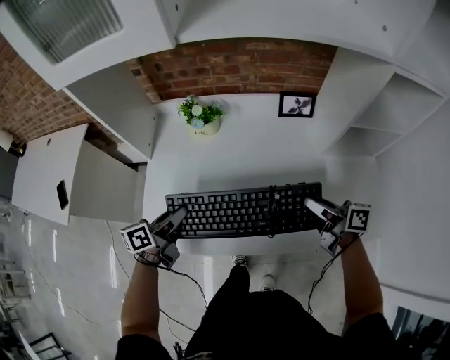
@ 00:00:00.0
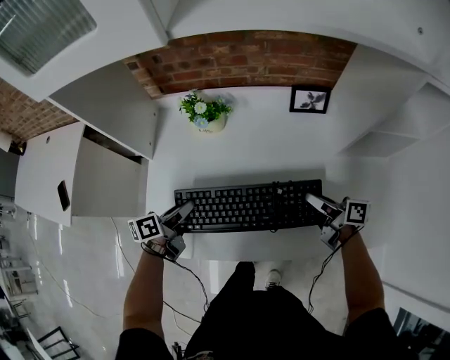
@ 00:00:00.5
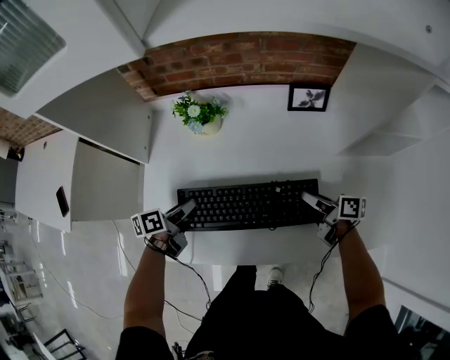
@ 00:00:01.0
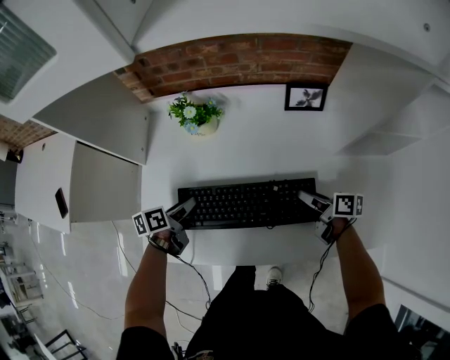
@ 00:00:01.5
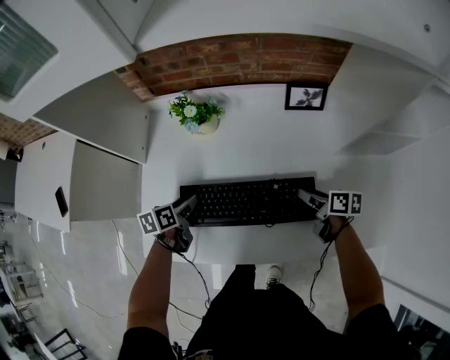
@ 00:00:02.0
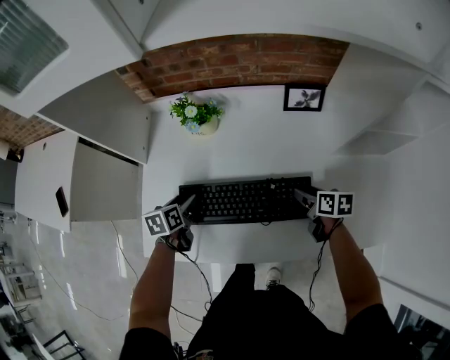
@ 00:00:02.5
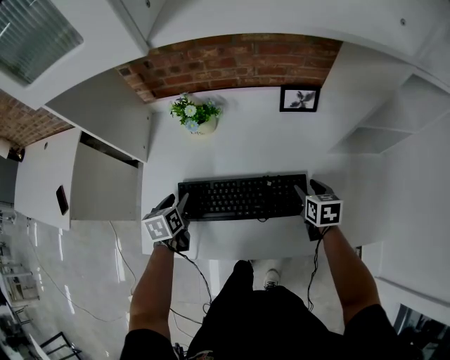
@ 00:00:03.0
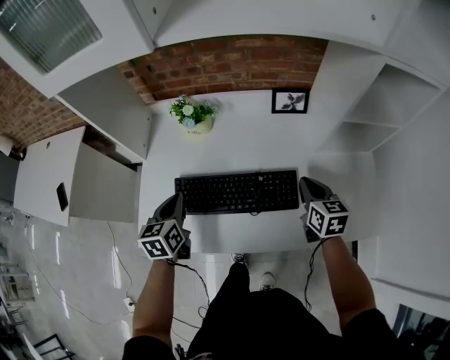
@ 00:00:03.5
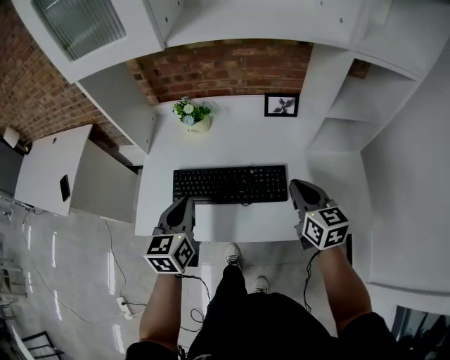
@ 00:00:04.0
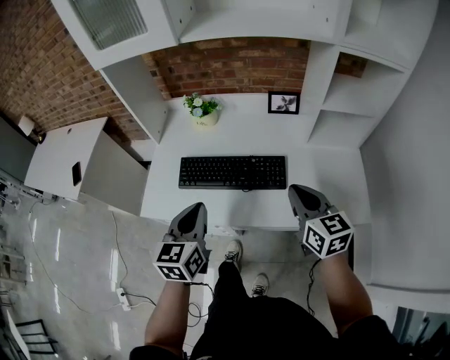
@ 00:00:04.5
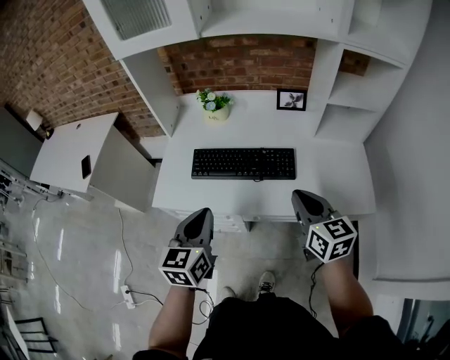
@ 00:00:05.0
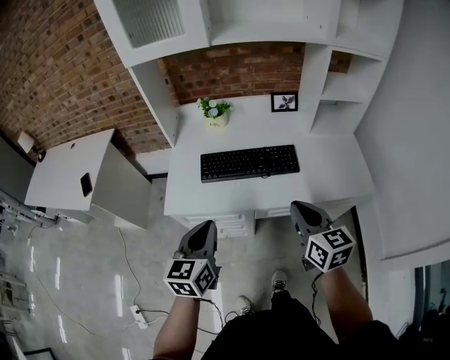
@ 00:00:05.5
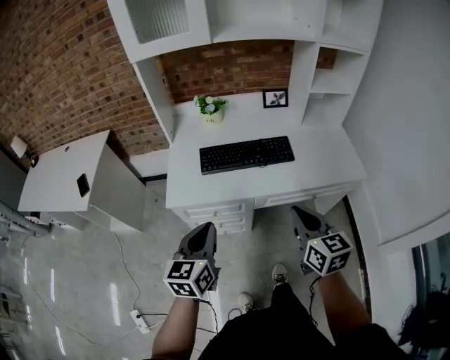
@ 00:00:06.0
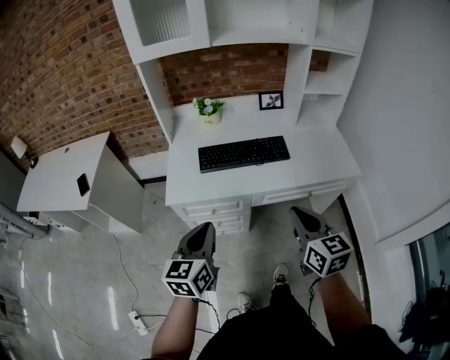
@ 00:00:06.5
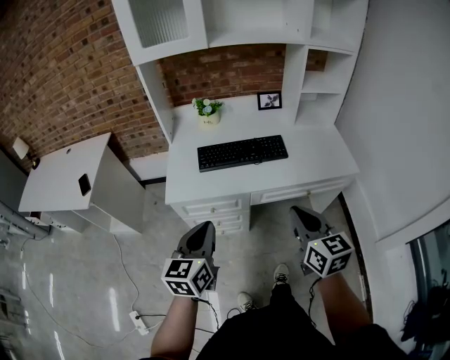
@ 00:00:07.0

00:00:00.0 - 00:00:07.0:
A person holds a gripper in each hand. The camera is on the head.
00:00:00.0 - 00:00:02.0: The grippers both shift downward and forward by about 15 cm. The left gripper angles its fingers downward, by about 30 degrees. Meanwhile the right gripper changes its angle by approximately 30 degrees.
00:00:02.0 - 00:00:03.5: Both grippers travel together upward, approximately 10 cm. The left gripper rotates approximately 30 degrees, and closes. Meanwhile the right gripper turns by about 40 degrees, and closes up.
00:00:03.5 - 00:00:05.0: The two grippers go about 25 cm backward and upward.
00:00:05.0 - 00:00:07.0: Both grippers move backward and to the left, approximately 20 cm.

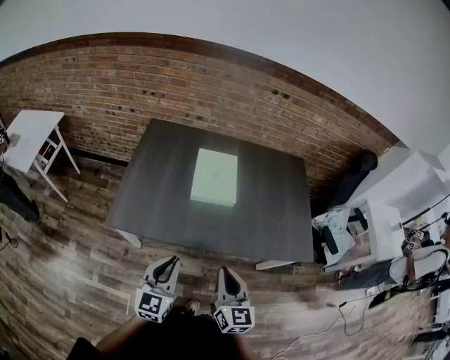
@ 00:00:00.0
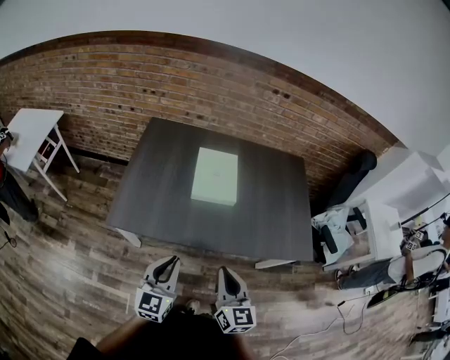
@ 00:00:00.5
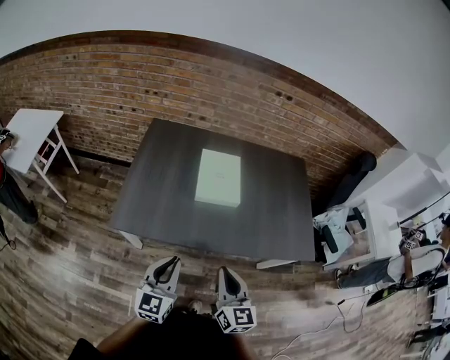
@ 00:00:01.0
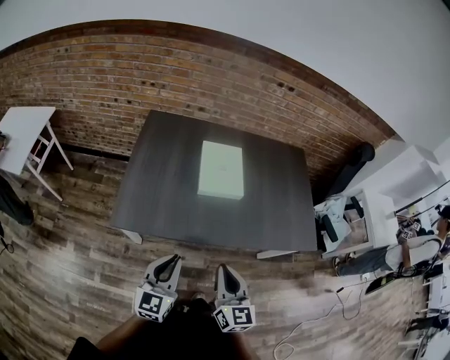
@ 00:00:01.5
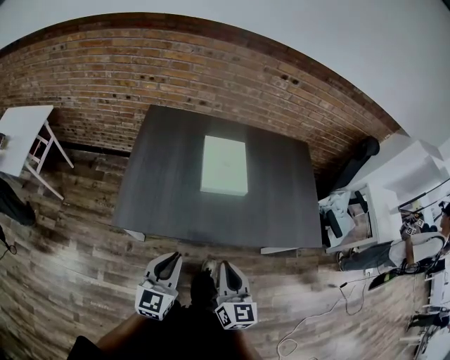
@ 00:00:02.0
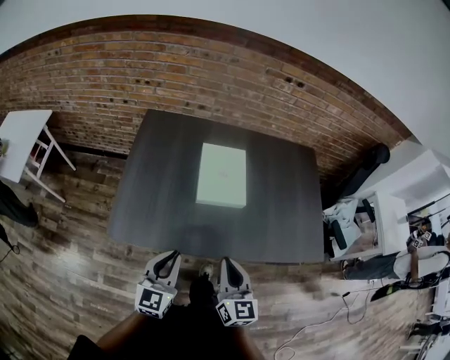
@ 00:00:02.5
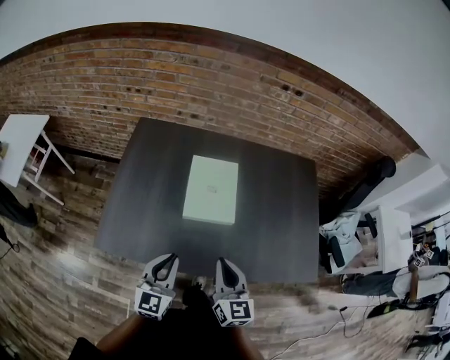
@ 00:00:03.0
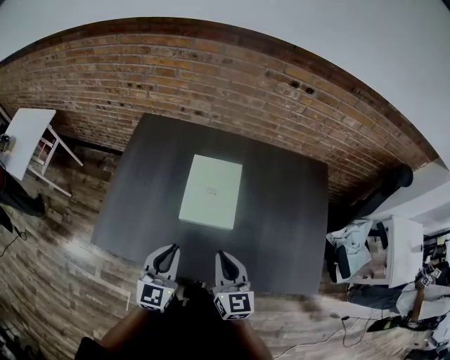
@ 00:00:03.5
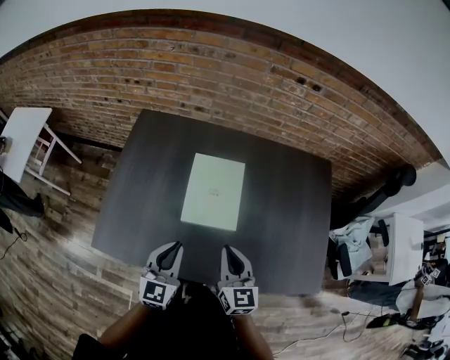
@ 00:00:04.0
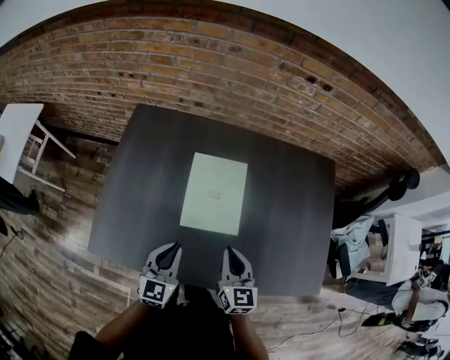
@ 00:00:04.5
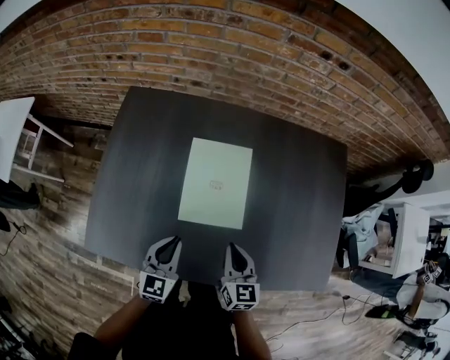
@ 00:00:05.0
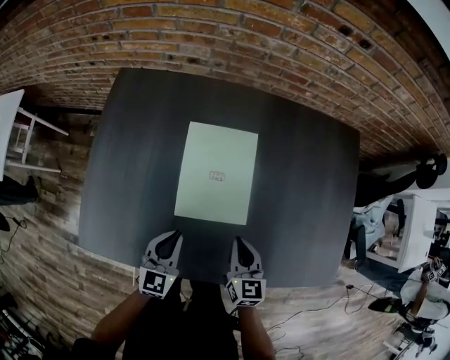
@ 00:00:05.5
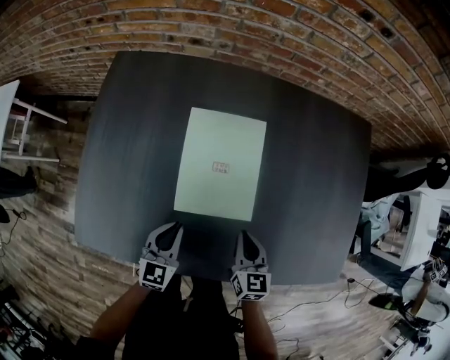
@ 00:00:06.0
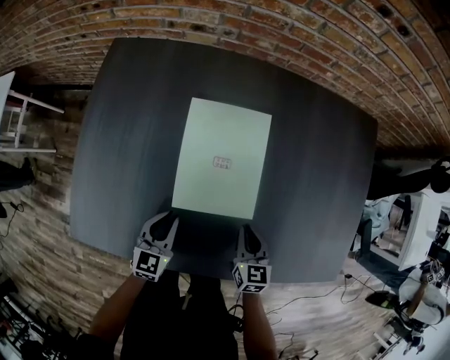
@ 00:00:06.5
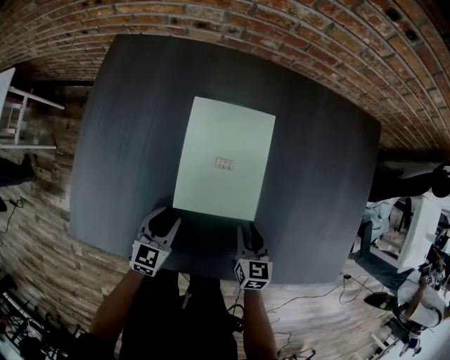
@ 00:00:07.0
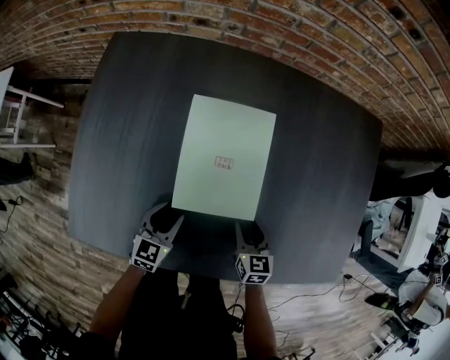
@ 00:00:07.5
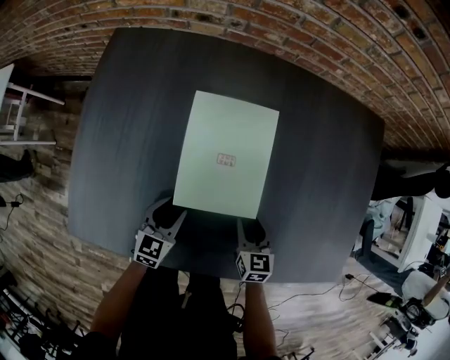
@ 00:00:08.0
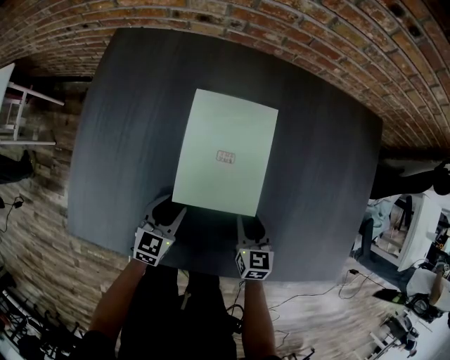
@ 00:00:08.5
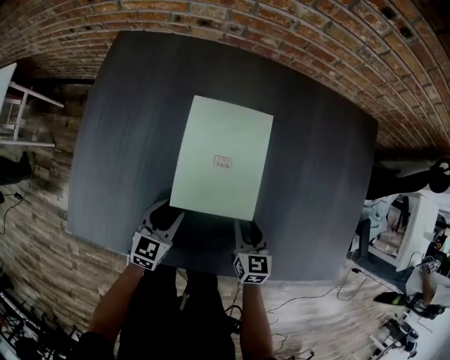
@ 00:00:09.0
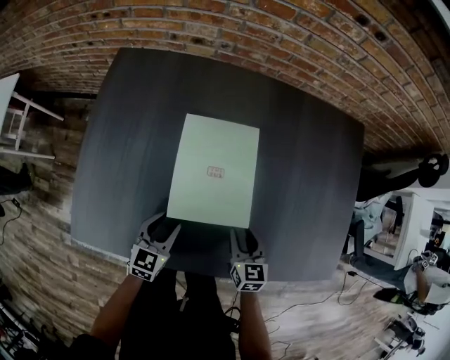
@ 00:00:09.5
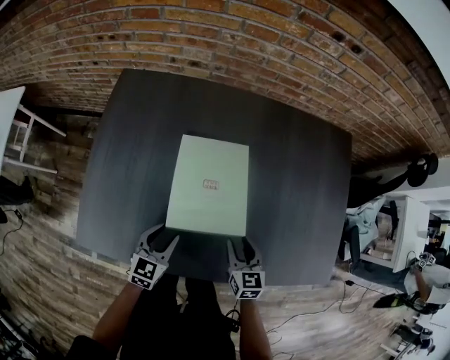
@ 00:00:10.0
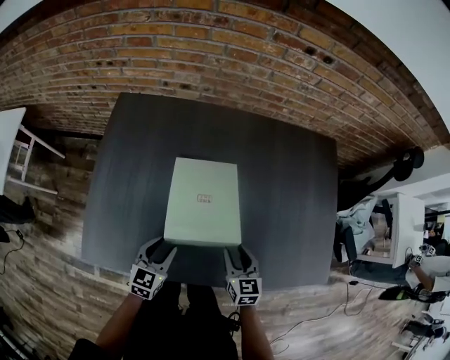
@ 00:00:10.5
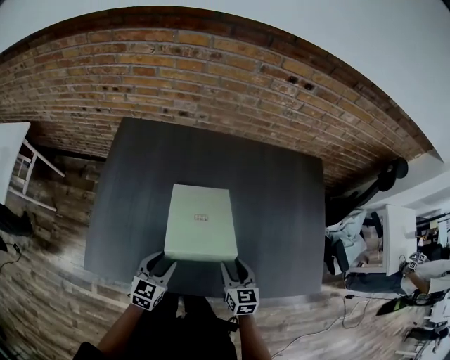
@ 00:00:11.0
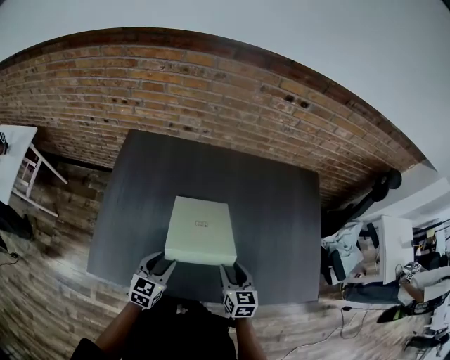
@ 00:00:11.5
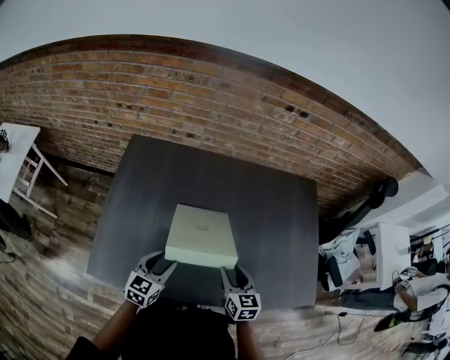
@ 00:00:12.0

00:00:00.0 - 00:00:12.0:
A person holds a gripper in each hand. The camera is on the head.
00:00:00.0 - 00:00:02.0: Both grippers travel together to the left, about 10 cm.
00:00:02.0 - 00:00:04.0: Both grippers move forward and to the right, roughly 30 cm.
00:00:04.0 - 00:00:06.0: Both grippers travel together downward, some 20 cm.
00:00:06.0 - 00:00:08.0: The two grippers go about 10 cm downward. The right gripper opens its fingers, while the left gripper opens.
00:00:08.0 - 00:00:10.0: The left gripper is displaced upward and backward by about 10 cm. Meanwhile the right gripper heads upward, covering roughly 10 cm.
00:00:10.0 - 00:00:12.0: Both grippers travel together upward, approximately 15 cm.

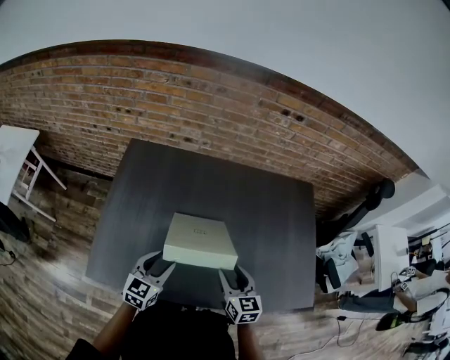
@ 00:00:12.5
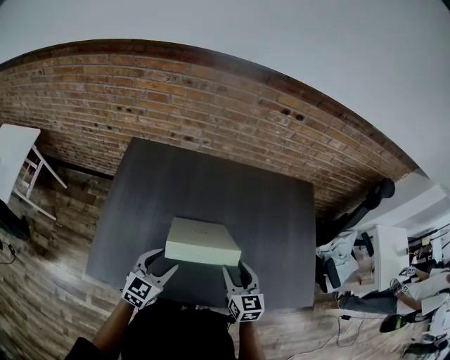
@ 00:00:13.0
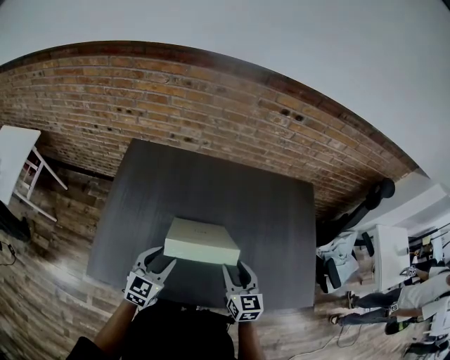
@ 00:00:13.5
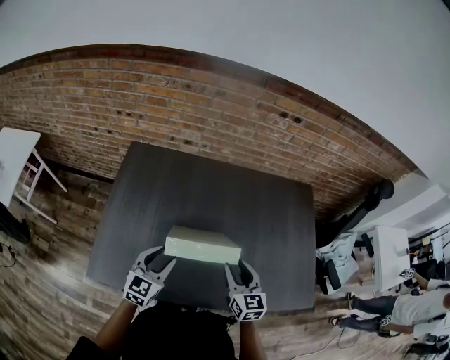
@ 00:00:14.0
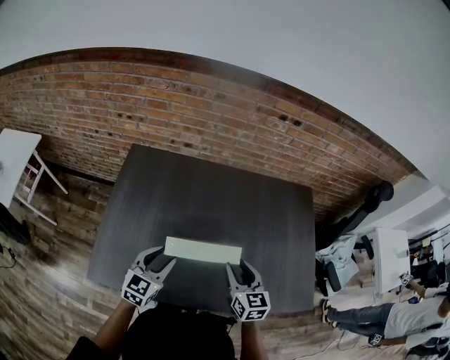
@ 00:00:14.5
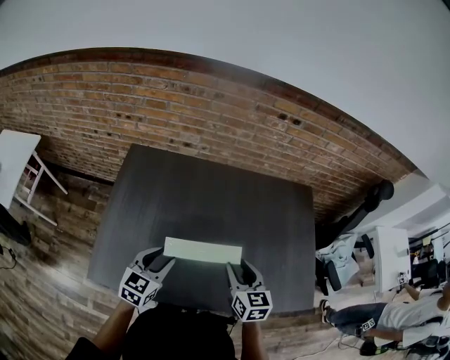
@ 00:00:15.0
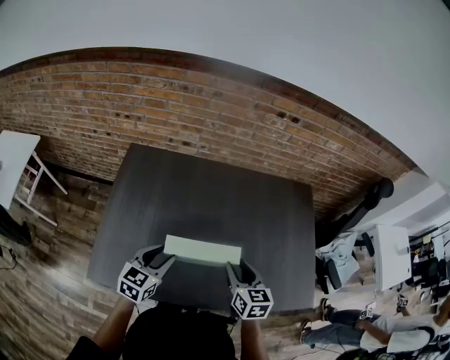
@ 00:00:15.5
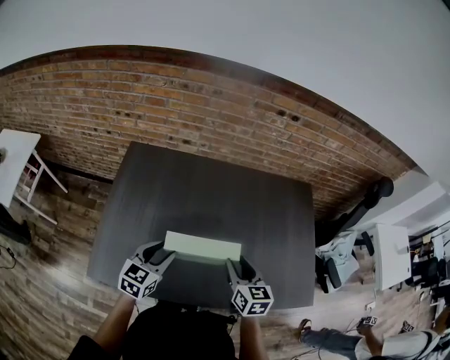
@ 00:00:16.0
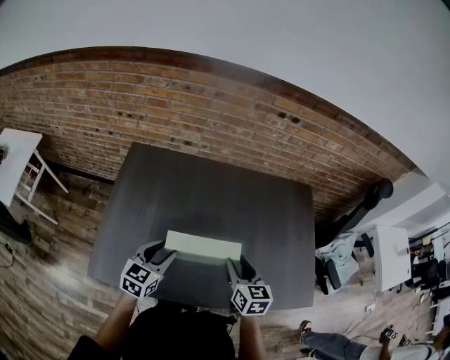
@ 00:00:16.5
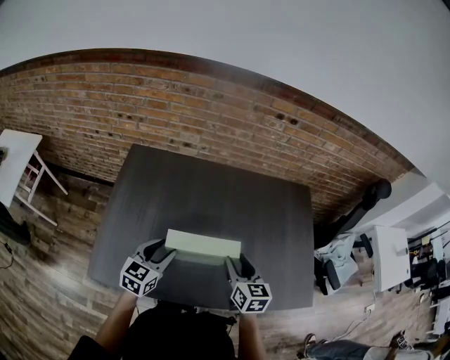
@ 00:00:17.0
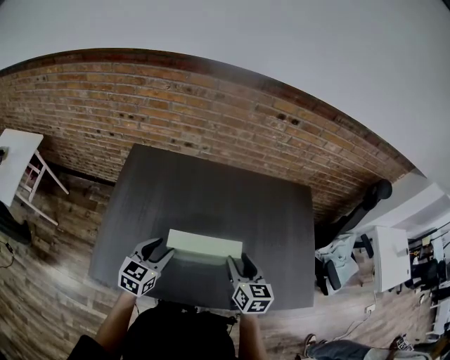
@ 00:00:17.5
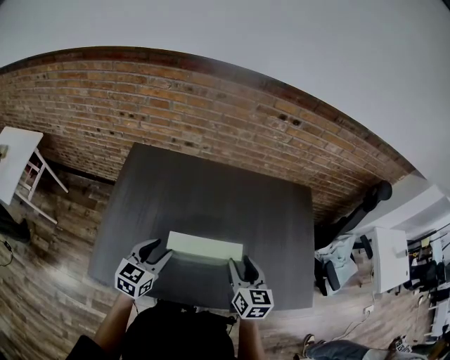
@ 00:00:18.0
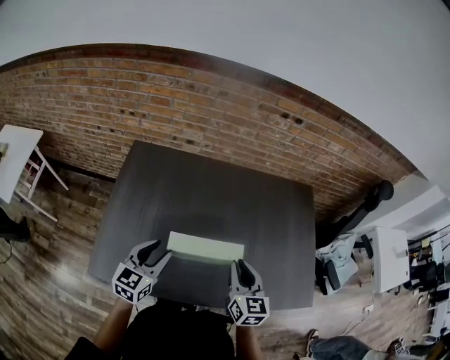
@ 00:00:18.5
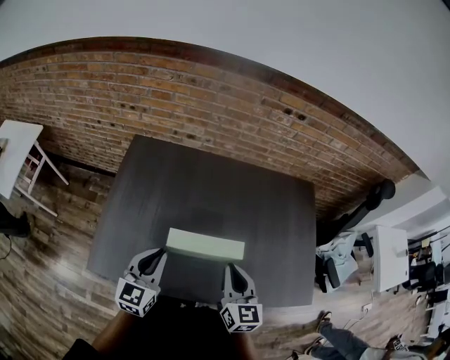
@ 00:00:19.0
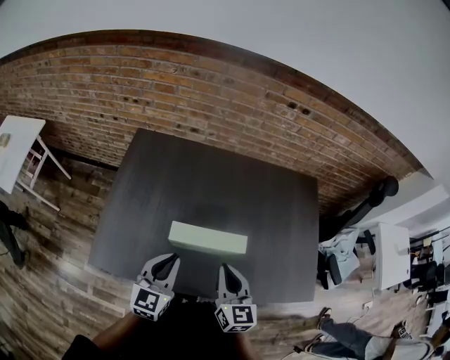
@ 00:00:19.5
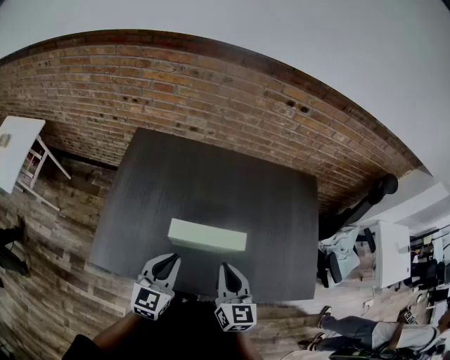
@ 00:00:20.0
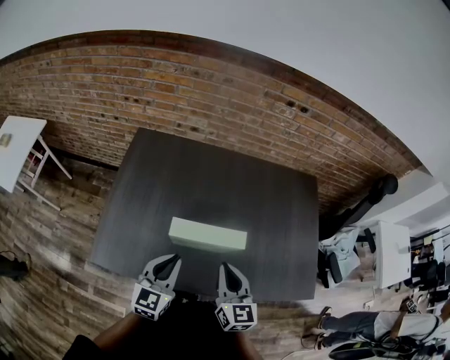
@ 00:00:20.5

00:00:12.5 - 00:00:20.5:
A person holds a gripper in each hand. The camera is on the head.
00:00:12.5 - 00:00:14.5: The right gripper shifts approximately 5 cm upward.
00:00:14.5 - 00:00:16.5: The grippers stay close to where they were, moving slightly.
00:00:16.5 - 00:00:18.5: The right gripper closes up.
00:00:18.5 - 00:00:20.5: The right gripper is displaced backward by about 5 cm. The left gripper shifts roughly 10 cm backward and to the right, and closes its fingers.
